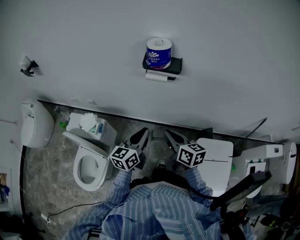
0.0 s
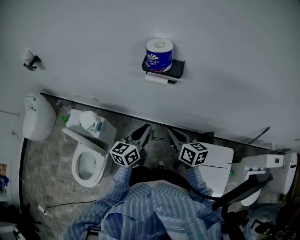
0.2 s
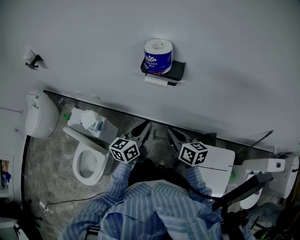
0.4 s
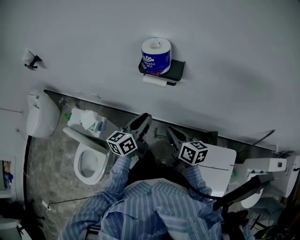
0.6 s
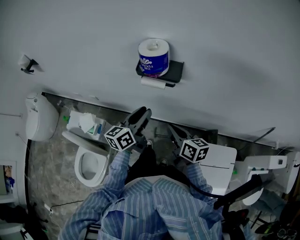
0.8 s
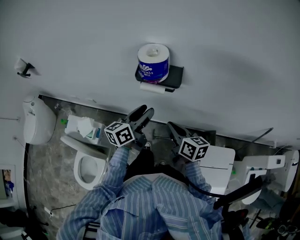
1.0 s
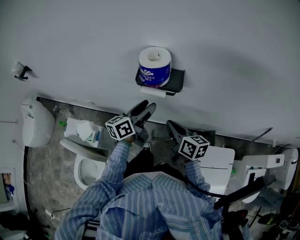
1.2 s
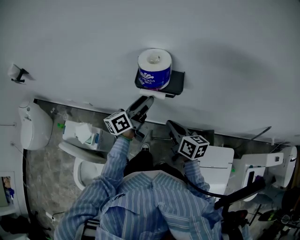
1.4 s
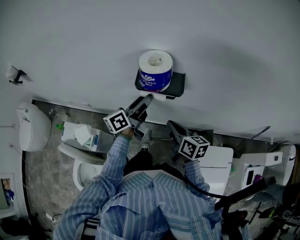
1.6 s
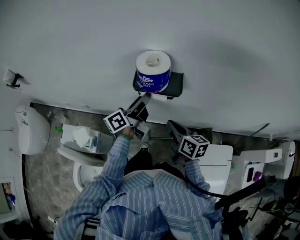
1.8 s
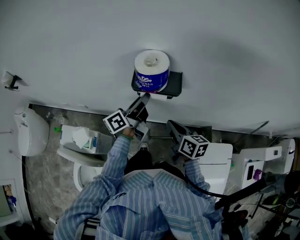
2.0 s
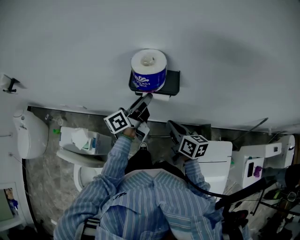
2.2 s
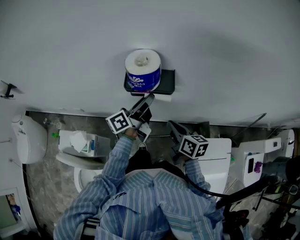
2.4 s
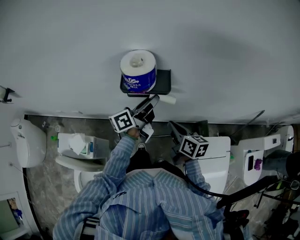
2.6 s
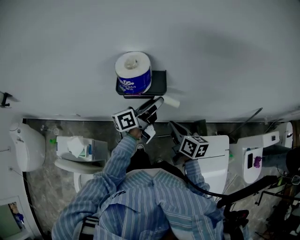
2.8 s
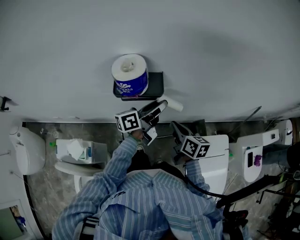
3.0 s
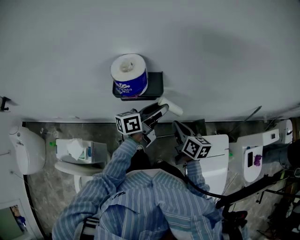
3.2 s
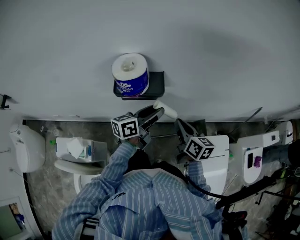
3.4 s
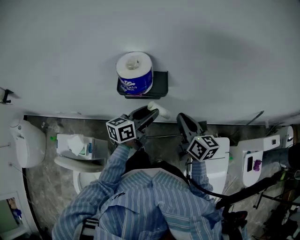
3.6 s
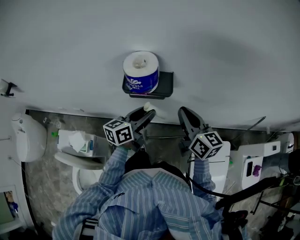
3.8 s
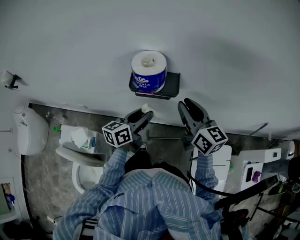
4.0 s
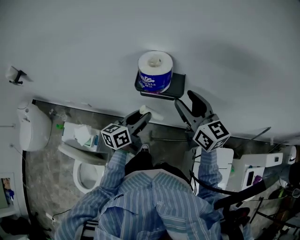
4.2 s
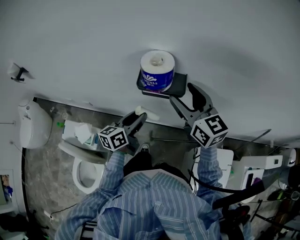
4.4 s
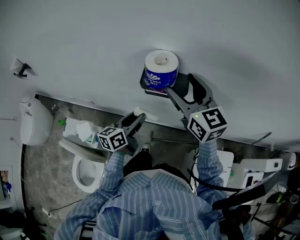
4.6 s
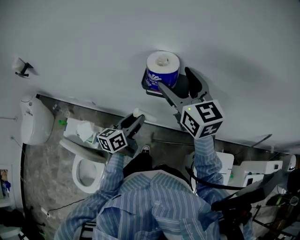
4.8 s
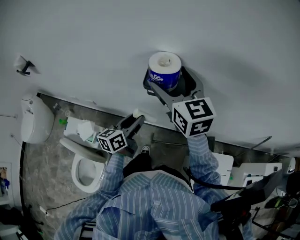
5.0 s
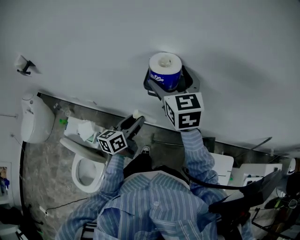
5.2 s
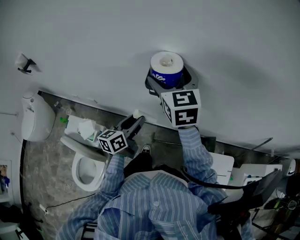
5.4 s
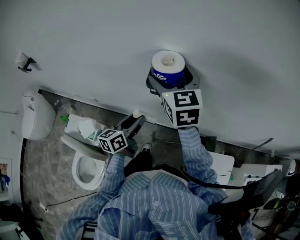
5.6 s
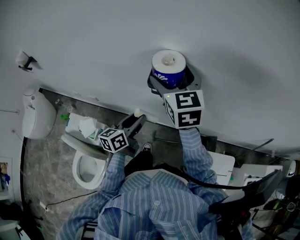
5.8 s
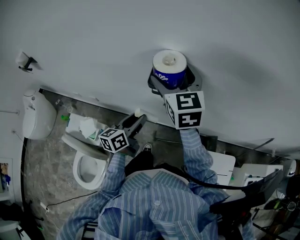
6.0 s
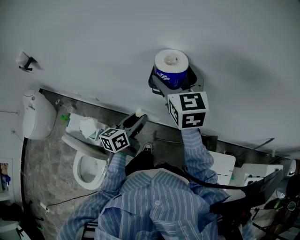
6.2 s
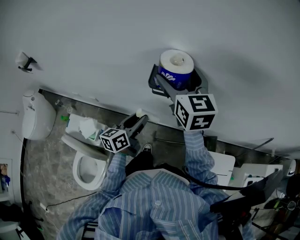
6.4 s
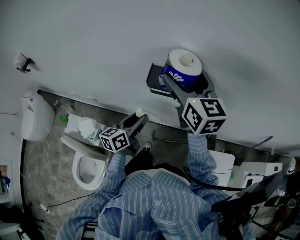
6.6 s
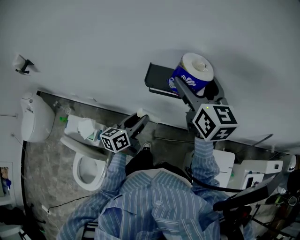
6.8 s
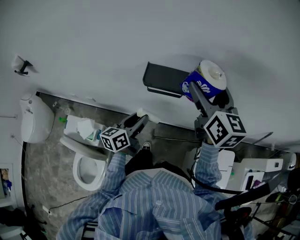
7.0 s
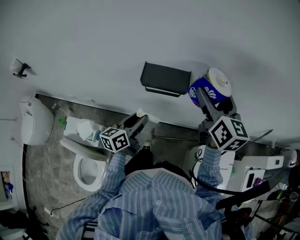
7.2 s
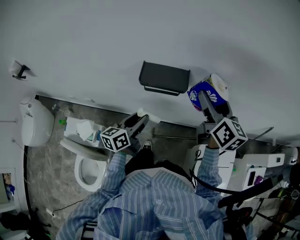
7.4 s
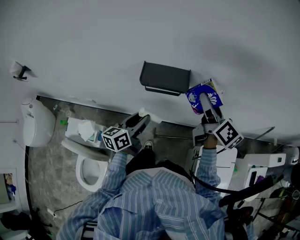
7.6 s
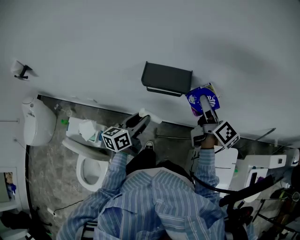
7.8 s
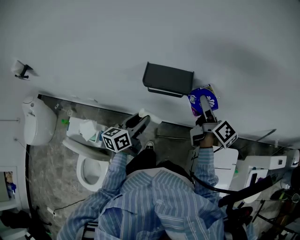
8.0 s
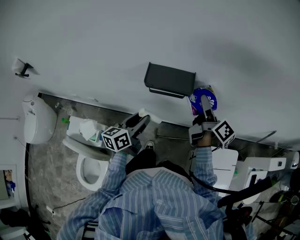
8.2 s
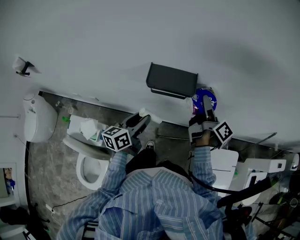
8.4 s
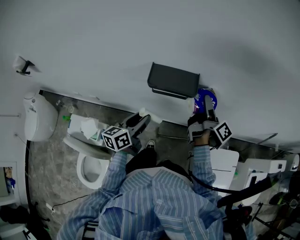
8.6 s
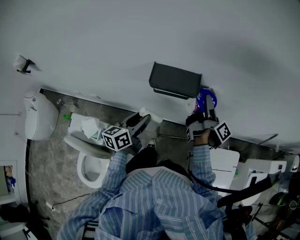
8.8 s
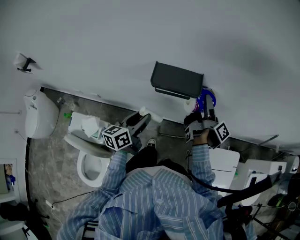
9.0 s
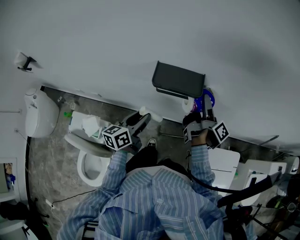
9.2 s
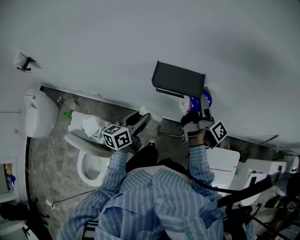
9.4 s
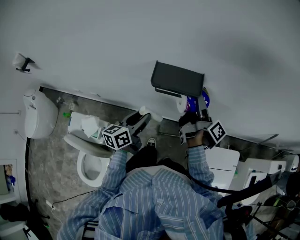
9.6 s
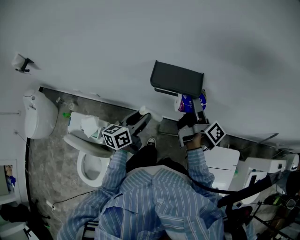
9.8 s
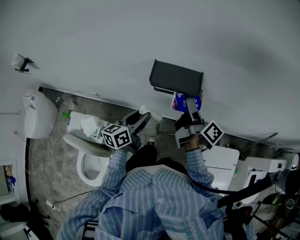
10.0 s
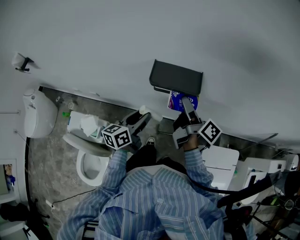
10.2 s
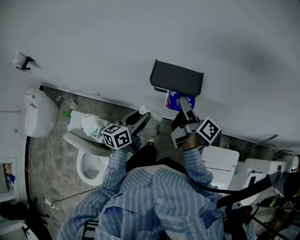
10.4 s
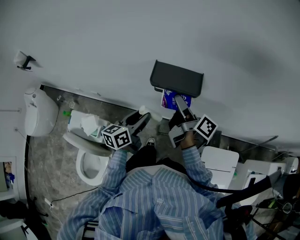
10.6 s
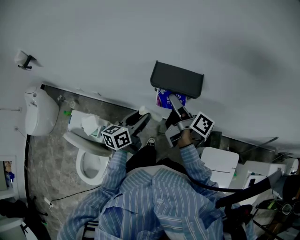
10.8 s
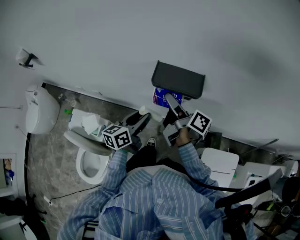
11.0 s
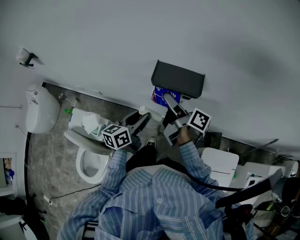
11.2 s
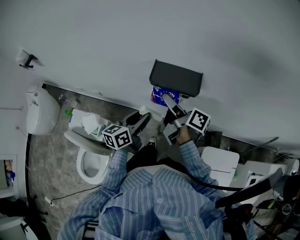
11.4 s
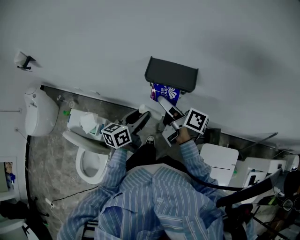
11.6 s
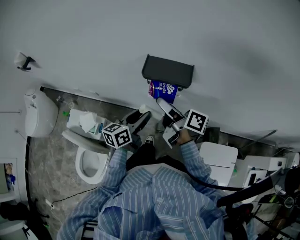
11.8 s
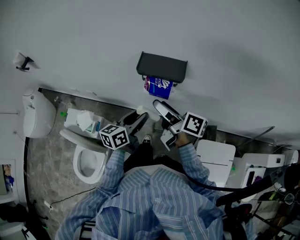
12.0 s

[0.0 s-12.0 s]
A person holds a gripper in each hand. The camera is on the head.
0.0 to 1.6 s: The right gripper heads forward, covering about 15 cm. The left gripper goes approximately 25 cm forward, swivels roughly 30 degrees, and opens up.
1.6 to 3.0 s: The left gripper shifts some 15 cm to the right, and rotates some 20 degrees, while the right gripper shifts about 10 cm to the right.
3.0 to 4.4 s: The right gripper is displaced upward and to the left by some 20 cm, changes its angle by roughly 50 degrees, and opens up, while the left gripper travels to the left and backward by some 15 cm, and changes its angle by roughly 30 degrees.
4.4 to 6.0 s: The right gripper moves to the left and forward, about 10 cm.
6.0 to 7.6 s: The right gripper moves to the right, about 20 cm, and rolls clockwise, seen from behind, by about 60 degrees.
7.6 to 9.0 s: The right gripper is displaced downward by roughly 10 cm, and twists approximately 50 degrees clockwise, seen from behind.
9.0 to 10.4 s: The right gripper shifts about 10 cm to the left, and changes its angle by about 20 degrees.
10.4 to 12.0 s: The right gripper heads backward, covering approximately 5 cm, and swivels some 20 degrees. The left gripper ends up roughly 5 cm from where it was.

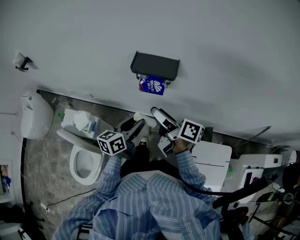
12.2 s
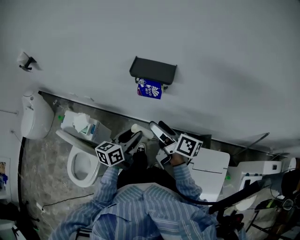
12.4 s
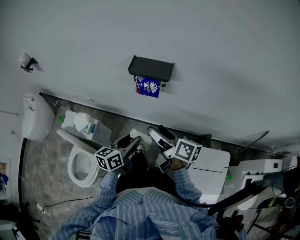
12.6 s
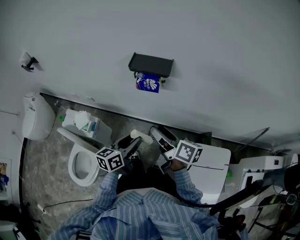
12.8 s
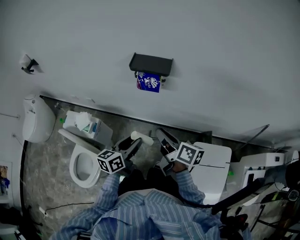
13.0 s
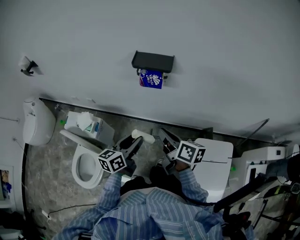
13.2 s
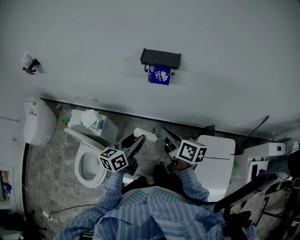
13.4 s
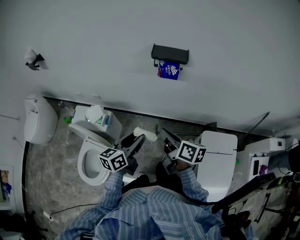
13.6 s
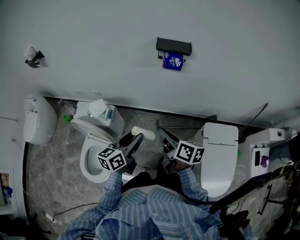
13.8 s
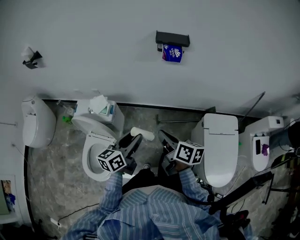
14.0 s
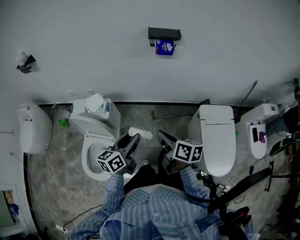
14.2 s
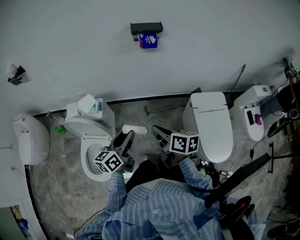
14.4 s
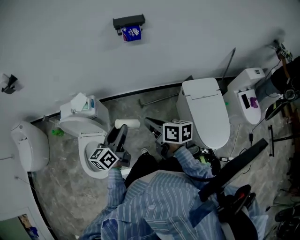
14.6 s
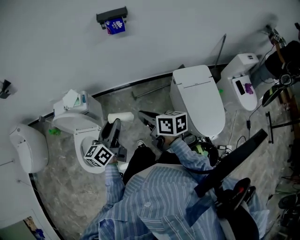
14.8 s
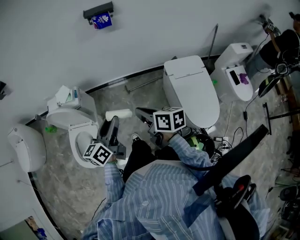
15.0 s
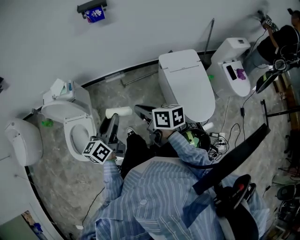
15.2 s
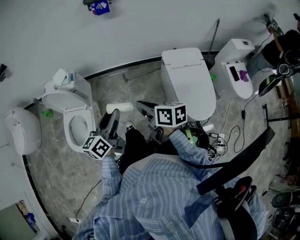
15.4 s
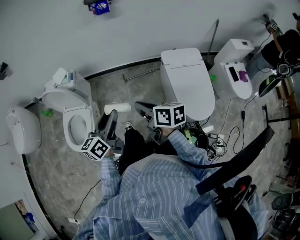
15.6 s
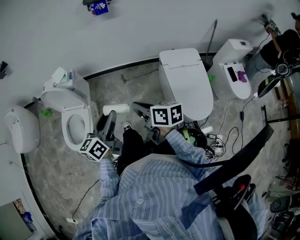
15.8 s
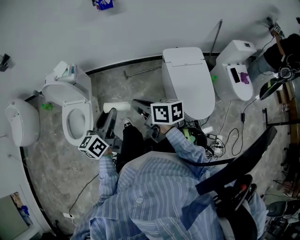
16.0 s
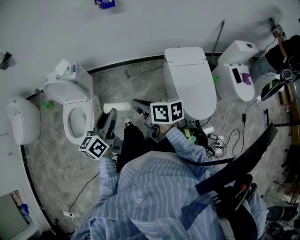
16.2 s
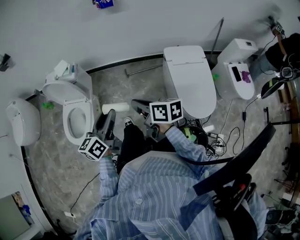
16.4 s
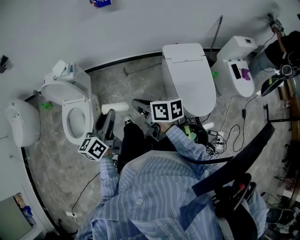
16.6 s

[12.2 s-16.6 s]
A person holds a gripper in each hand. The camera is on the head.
12.2 to 13.6 s: The left gripper is displaced backward and to the left by roughly 20 cm, while the right gripper travels backward by roughly 20 cm, rotates roughly 20 degrees, and closes up.
13.6 to 15.2 s: The grippers both shift backward by some 30 cm.
15.2 to 16.6 s: The grippers both shift backward by some 5 cm.

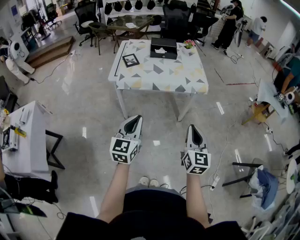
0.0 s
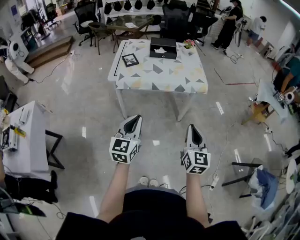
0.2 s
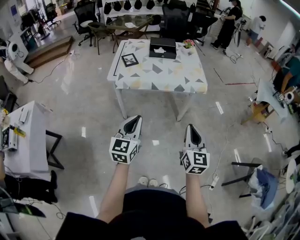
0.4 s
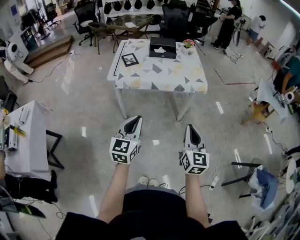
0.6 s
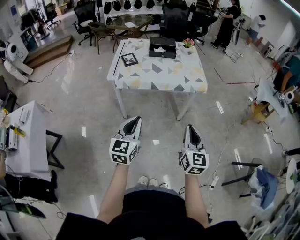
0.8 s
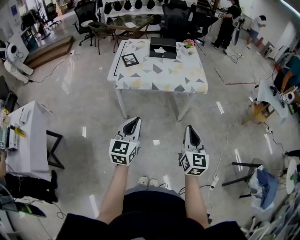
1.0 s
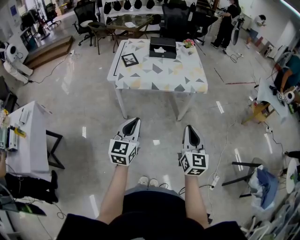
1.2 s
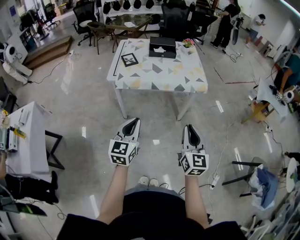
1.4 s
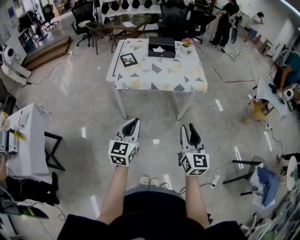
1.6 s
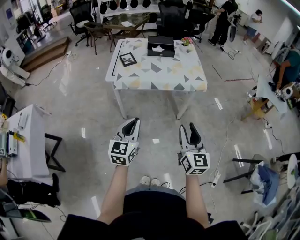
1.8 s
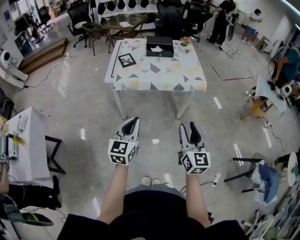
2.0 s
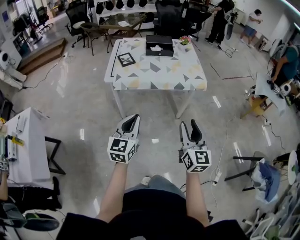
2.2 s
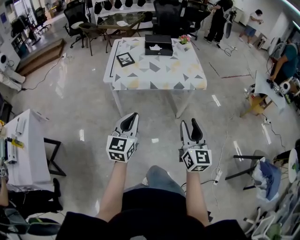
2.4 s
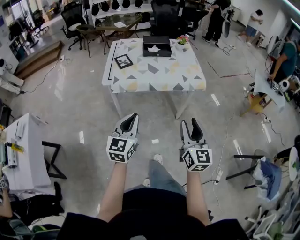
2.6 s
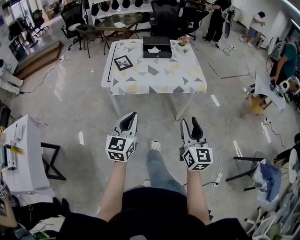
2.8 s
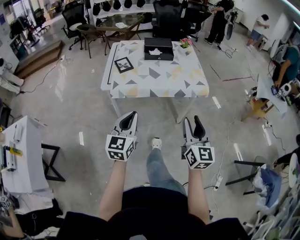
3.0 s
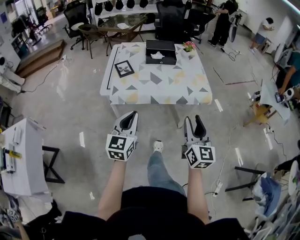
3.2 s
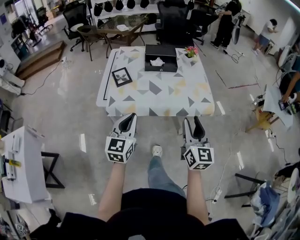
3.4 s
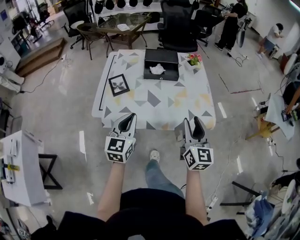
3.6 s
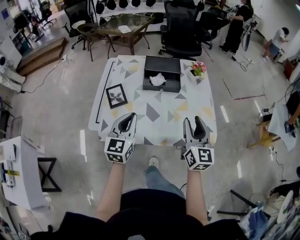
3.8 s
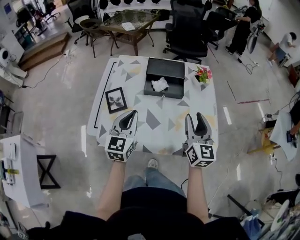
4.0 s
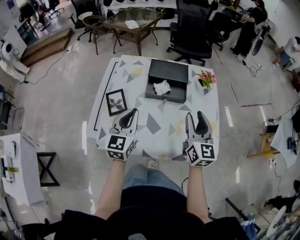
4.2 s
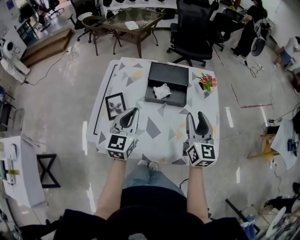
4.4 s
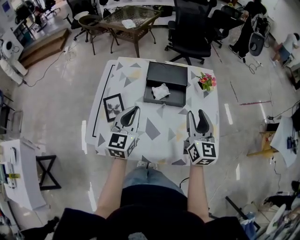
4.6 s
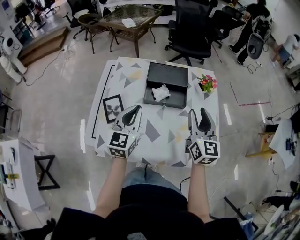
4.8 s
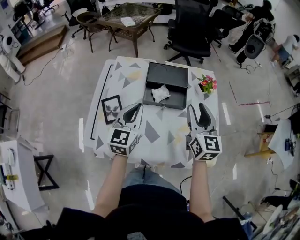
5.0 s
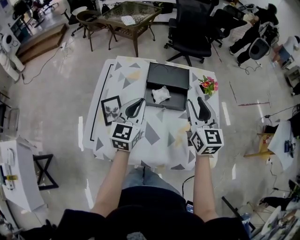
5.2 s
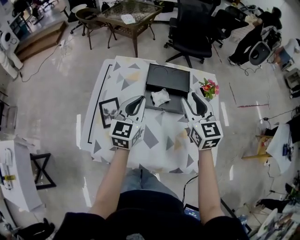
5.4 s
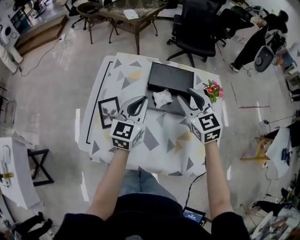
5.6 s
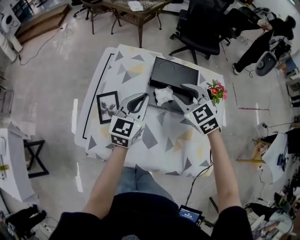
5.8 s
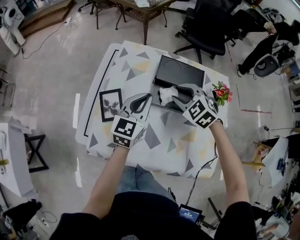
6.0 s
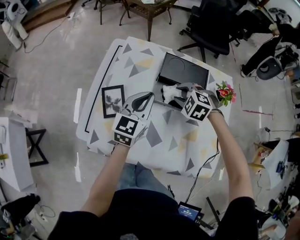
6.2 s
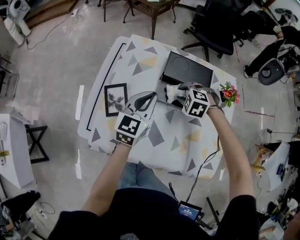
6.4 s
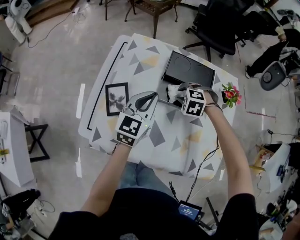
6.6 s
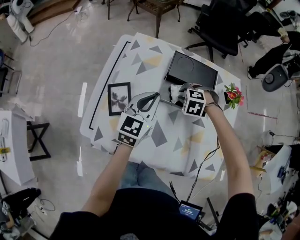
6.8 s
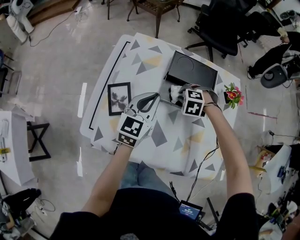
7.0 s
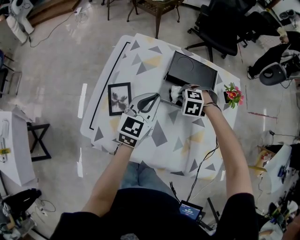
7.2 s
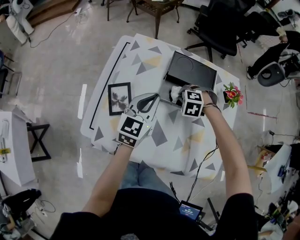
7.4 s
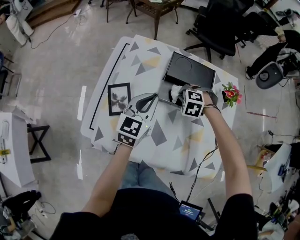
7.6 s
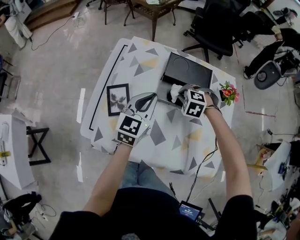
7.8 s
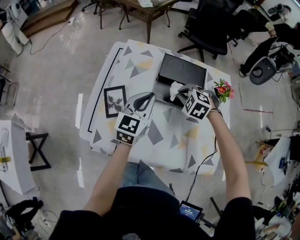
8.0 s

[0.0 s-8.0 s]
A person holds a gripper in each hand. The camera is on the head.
0.0 to 1.6 s: The right gripper opens up.
1.6 to 3.2 s: The two grippers go some 15 cm forward.
3.2 to 4.8 s: Both grippers are carried forward, approximately 50 cm.
4.8 to 6.4 s: The left gripper goes approximately 10 cm forward and downward. Meanwhile the right gripper shifts some 30 cm downward, forward and to the left, and angles its fingers downward, by approximately 60 degrees.
6.4 to 8.0 s: The right gripper closes up.
